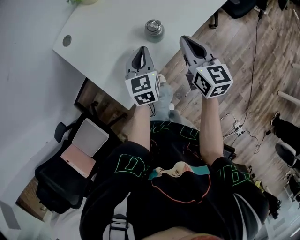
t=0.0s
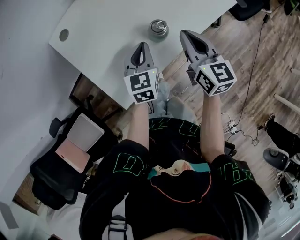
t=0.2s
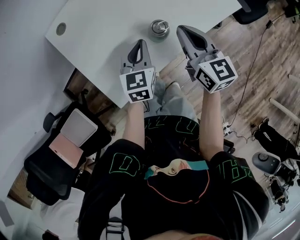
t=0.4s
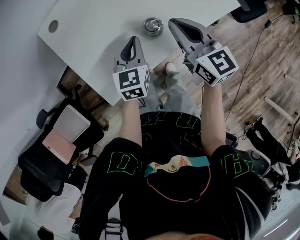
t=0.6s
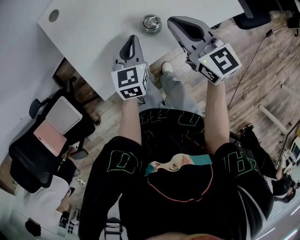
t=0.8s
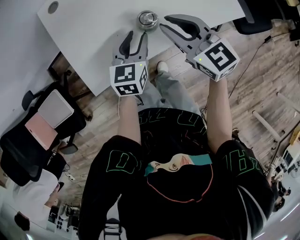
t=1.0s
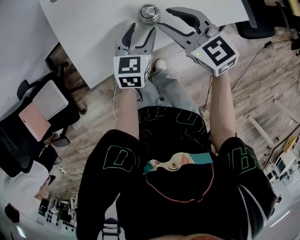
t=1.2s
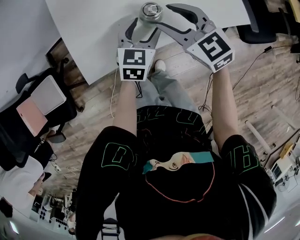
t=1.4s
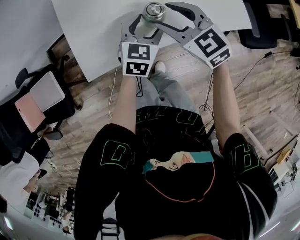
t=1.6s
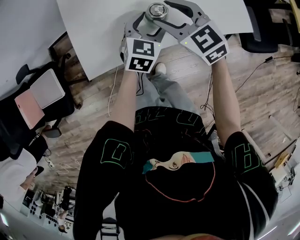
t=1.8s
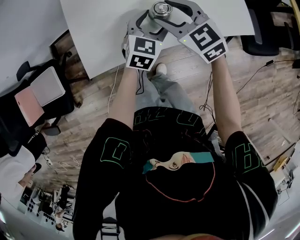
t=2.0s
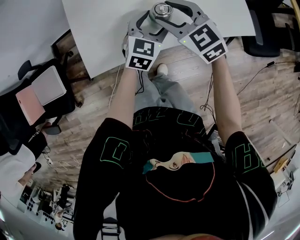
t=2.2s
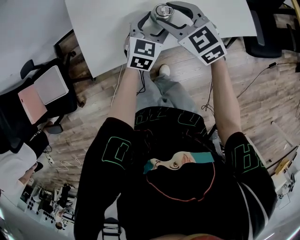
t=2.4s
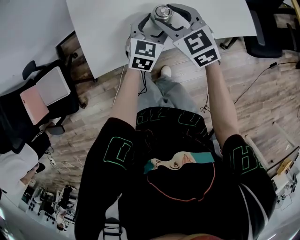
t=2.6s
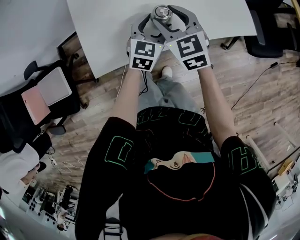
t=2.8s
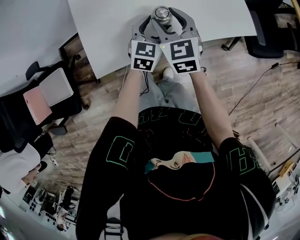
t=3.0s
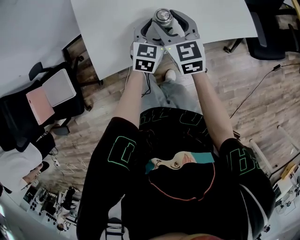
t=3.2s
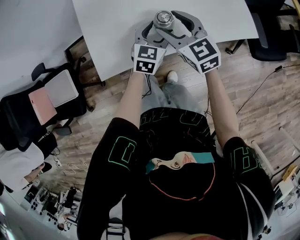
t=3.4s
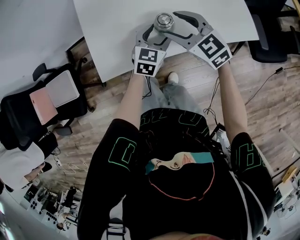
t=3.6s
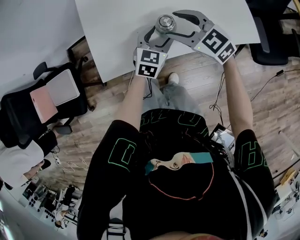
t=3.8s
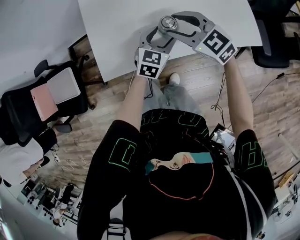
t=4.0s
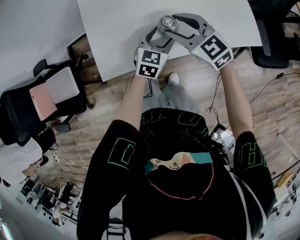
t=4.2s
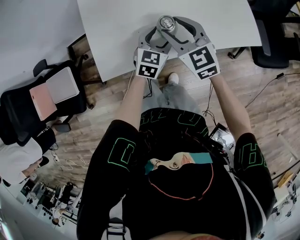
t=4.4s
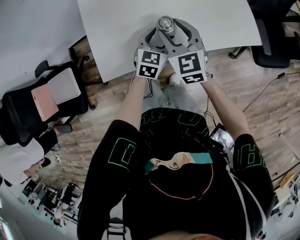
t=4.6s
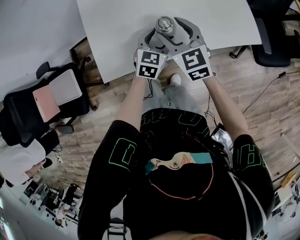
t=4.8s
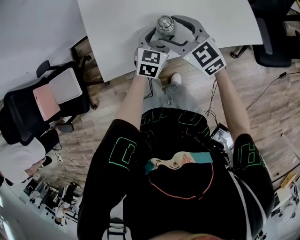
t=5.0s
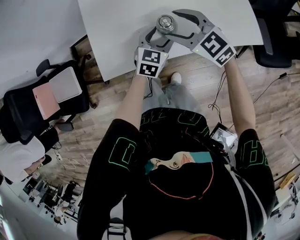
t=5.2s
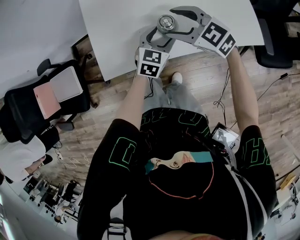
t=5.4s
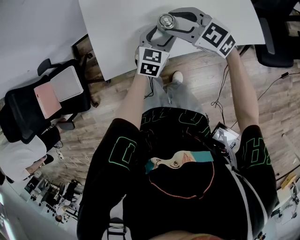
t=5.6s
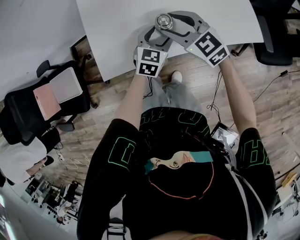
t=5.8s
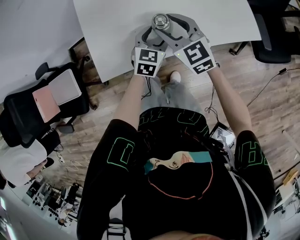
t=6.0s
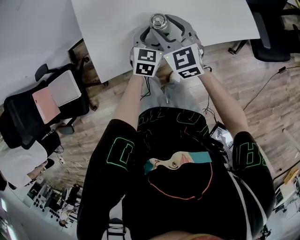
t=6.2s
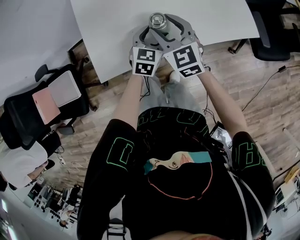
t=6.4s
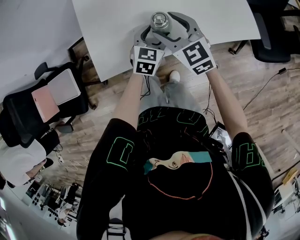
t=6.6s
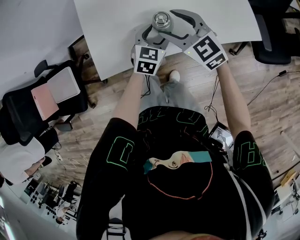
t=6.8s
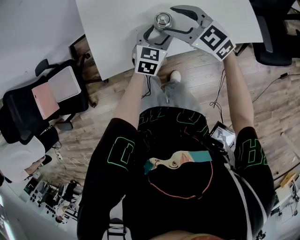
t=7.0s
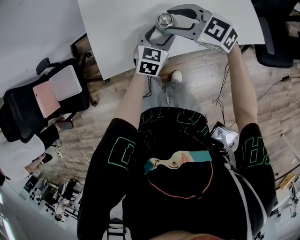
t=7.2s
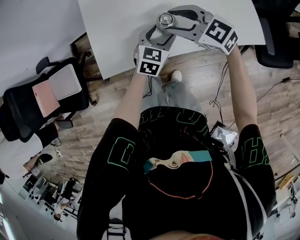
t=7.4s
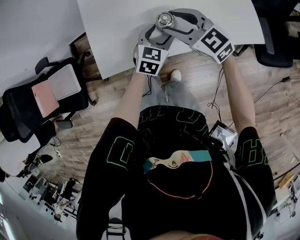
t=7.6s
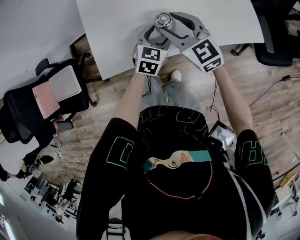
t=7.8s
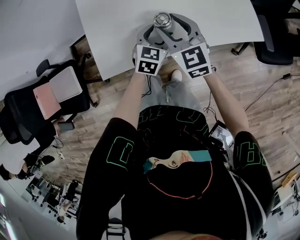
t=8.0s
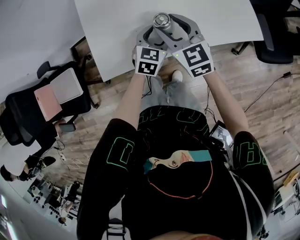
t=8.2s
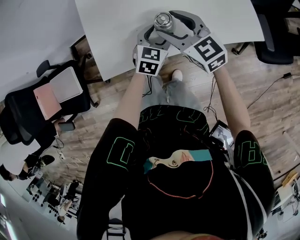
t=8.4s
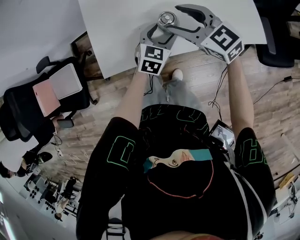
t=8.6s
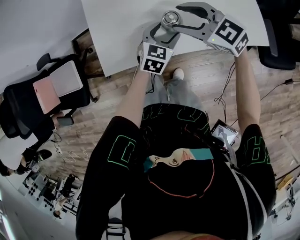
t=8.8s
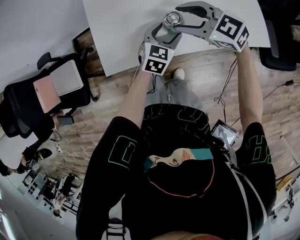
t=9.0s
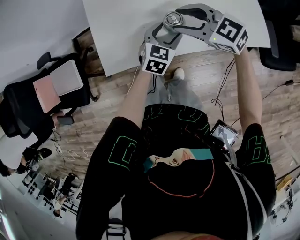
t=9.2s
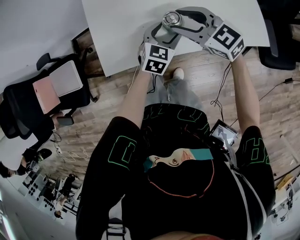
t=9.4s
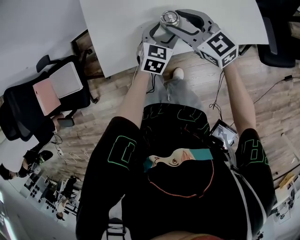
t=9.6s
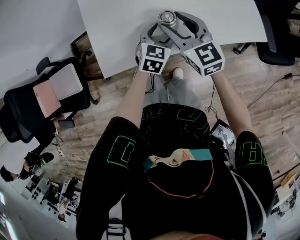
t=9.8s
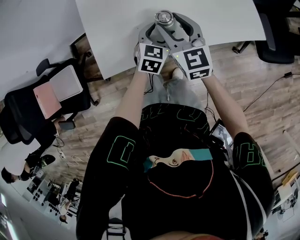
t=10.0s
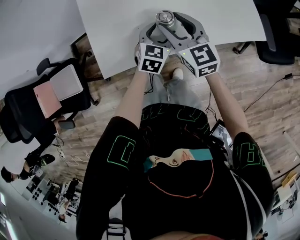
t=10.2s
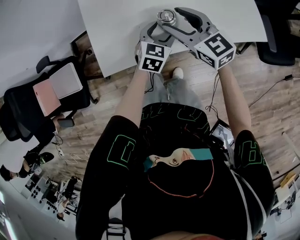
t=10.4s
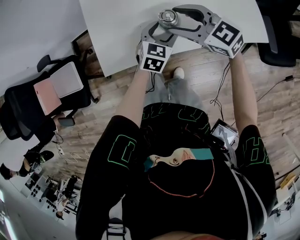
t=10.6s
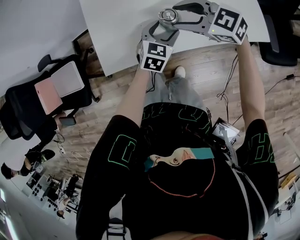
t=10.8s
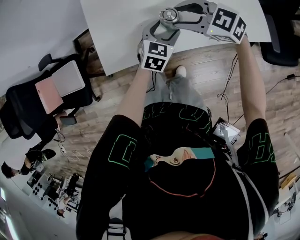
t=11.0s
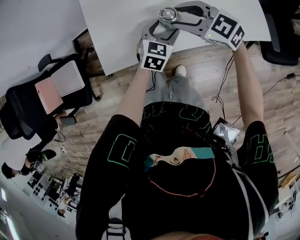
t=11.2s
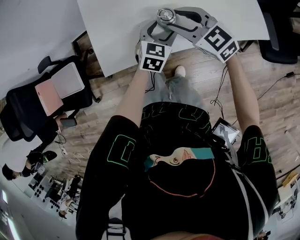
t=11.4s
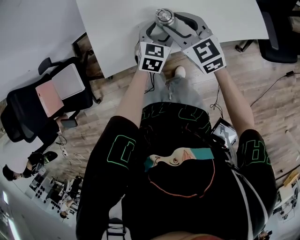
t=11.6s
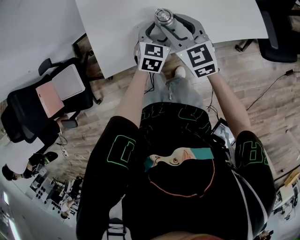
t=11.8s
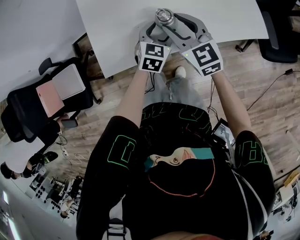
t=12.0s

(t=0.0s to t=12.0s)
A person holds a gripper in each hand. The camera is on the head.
t=0.0s - t=1.6s: The right gripper shifts by about 10 cm, swivels about 70 degrees, and opens its fingers; the left gripper changes place by about 10 cm, and opens.
t=1.6s - t=3.0s: The right gripper turns by about 30 degrees.
t=9.0s - t=10.4s: The right gripper swivels approximately 30 degrees.

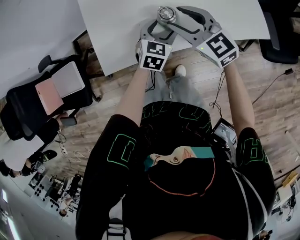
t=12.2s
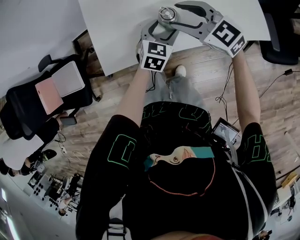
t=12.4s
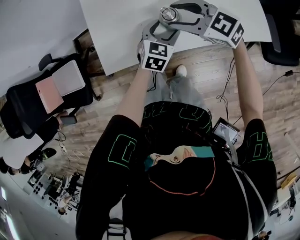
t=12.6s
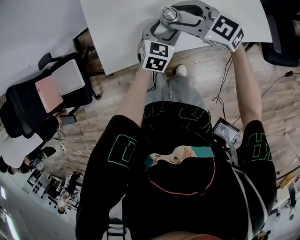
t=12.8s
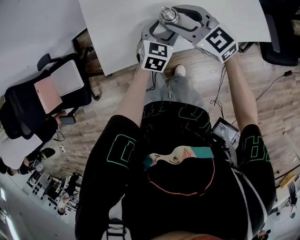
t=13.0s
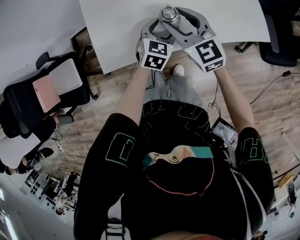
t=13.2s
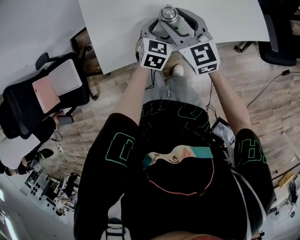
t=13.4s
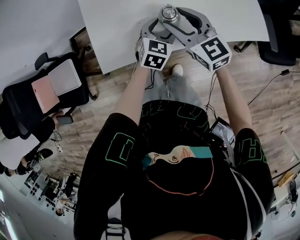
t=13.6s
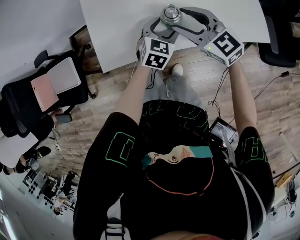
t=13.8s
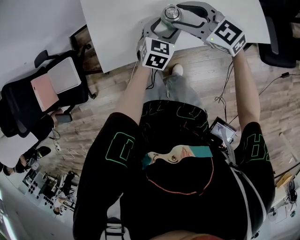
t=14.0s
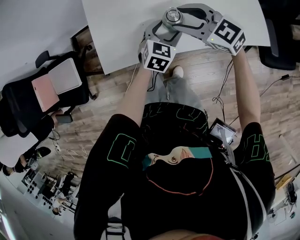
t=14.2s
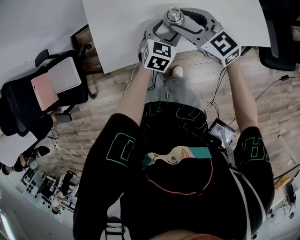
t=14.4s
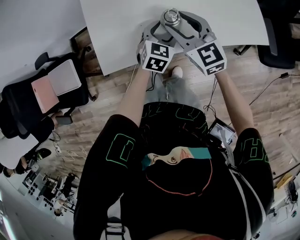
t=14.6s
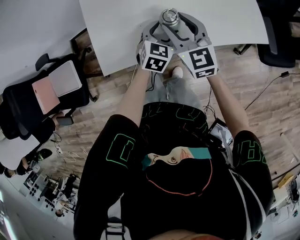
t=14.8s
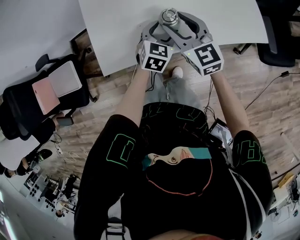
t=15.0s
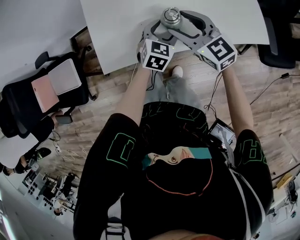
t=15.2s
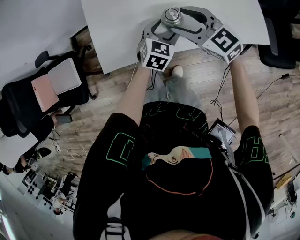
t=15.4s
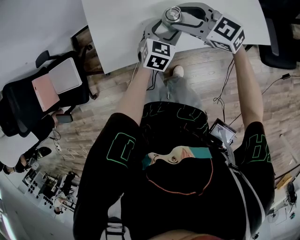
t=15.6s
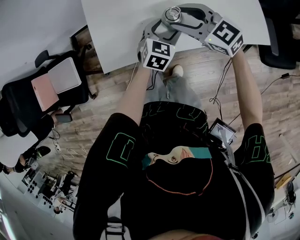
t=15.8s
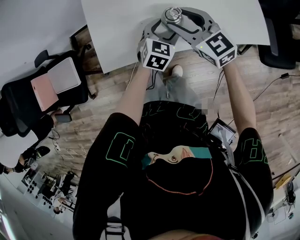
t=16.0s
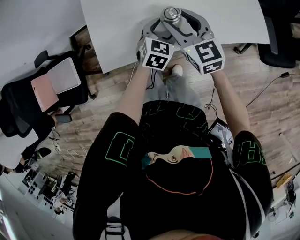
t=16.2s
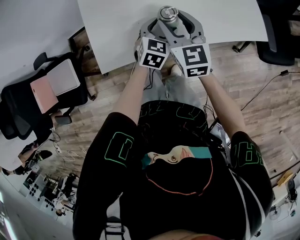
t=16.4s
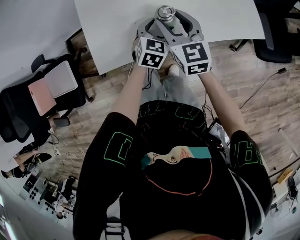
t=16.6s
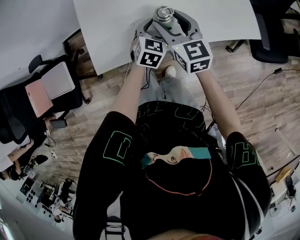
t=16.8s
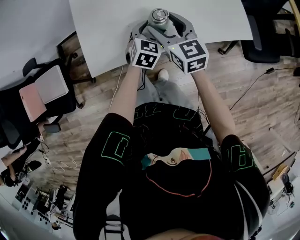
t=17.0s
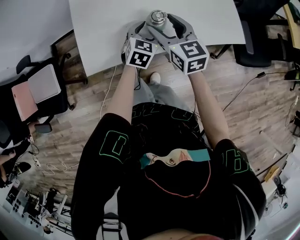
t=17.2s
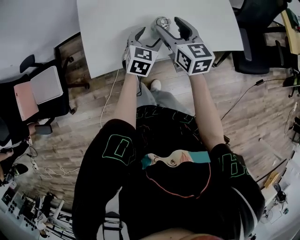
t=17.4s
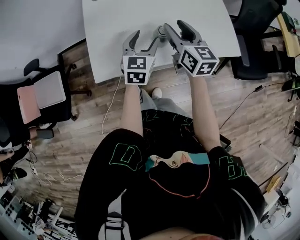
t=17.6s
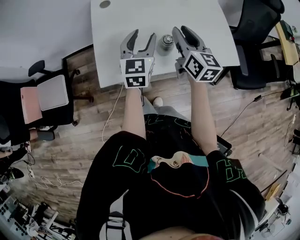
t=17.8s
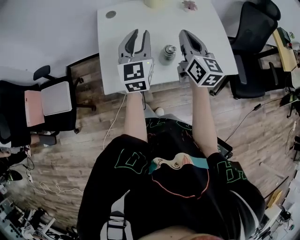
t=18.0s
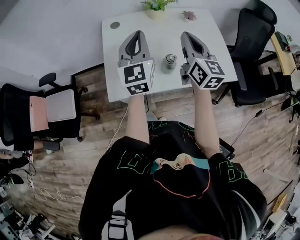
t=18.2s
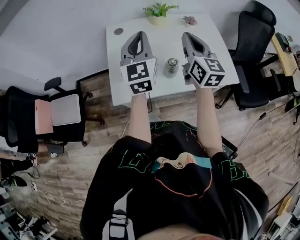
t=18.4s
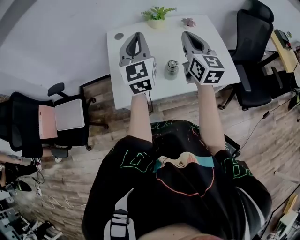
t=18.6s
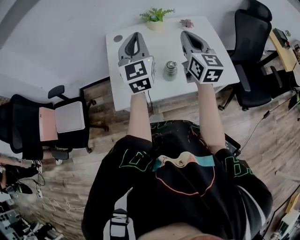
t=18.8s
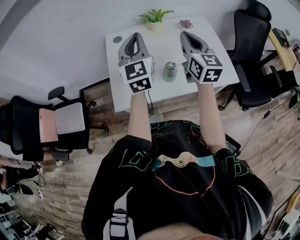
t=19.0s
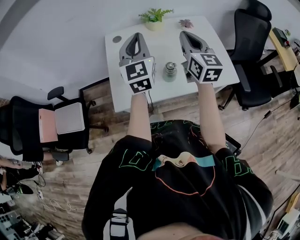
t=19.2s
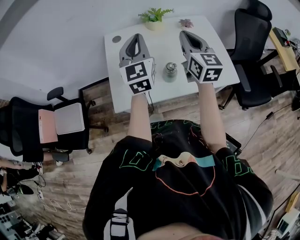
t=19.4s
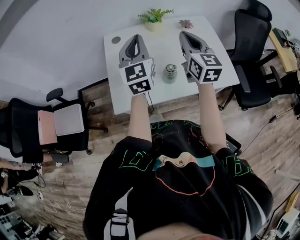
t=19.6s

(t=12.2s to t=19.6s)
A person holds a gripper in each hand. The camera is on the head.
t=15.2s - t=16.6s: The right gripper changes its angle by roughly 30 degrees.
t=16.6s - t=18.2s: The right gripper heads upward, covering some 20 cm, and closes. The left gripper moves upward, approximately 30 cm, tips its fingers upward by approximately 40 degrees, and closes its fingers.
t=18.2s - t=19.6s: The grippers move only a little.

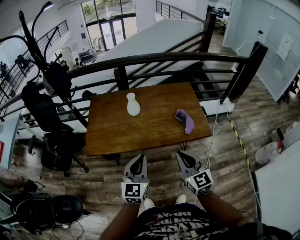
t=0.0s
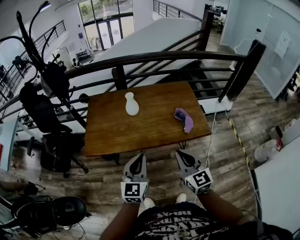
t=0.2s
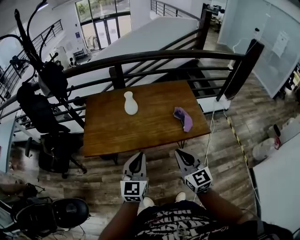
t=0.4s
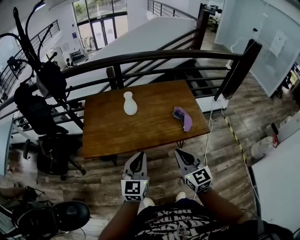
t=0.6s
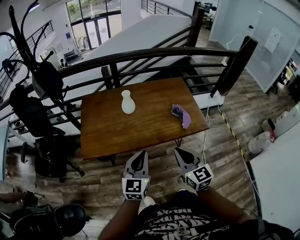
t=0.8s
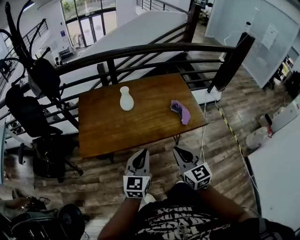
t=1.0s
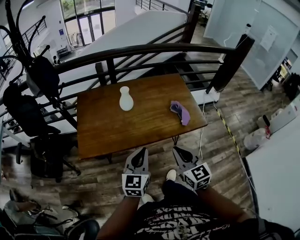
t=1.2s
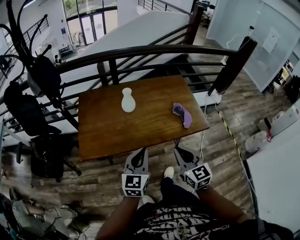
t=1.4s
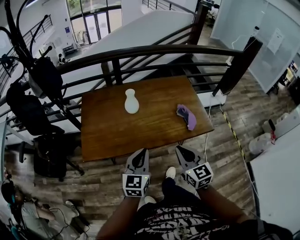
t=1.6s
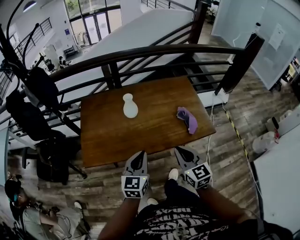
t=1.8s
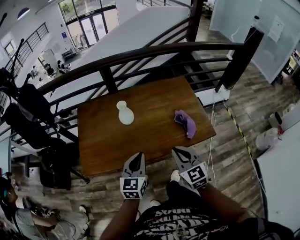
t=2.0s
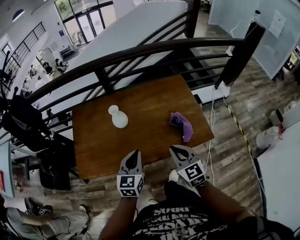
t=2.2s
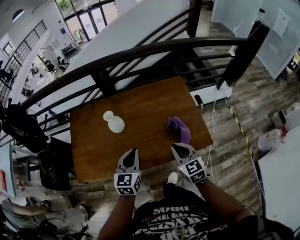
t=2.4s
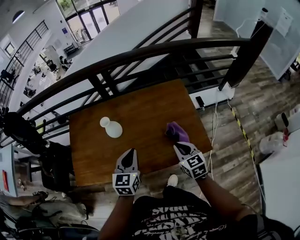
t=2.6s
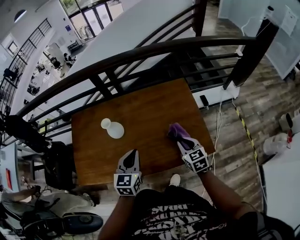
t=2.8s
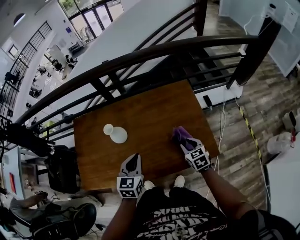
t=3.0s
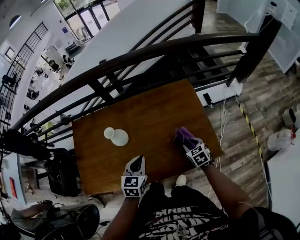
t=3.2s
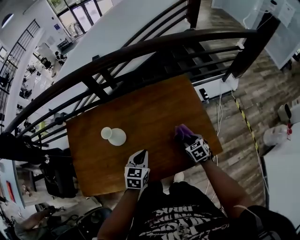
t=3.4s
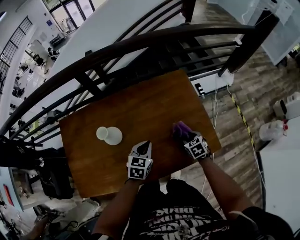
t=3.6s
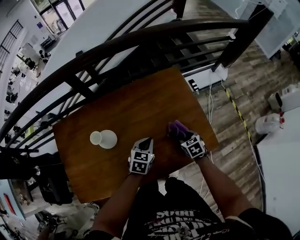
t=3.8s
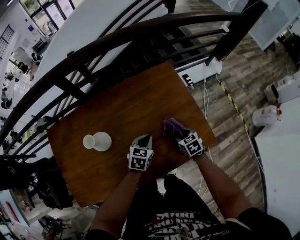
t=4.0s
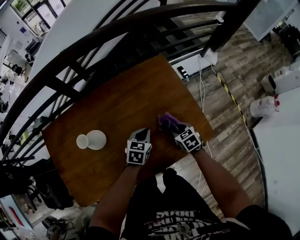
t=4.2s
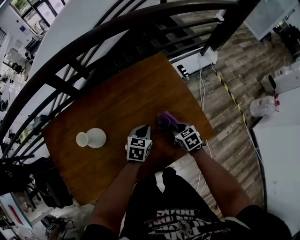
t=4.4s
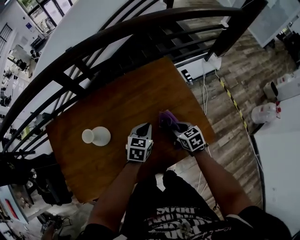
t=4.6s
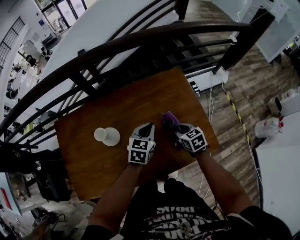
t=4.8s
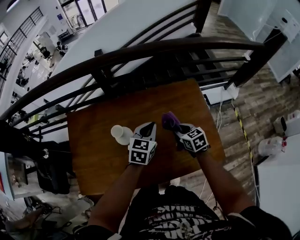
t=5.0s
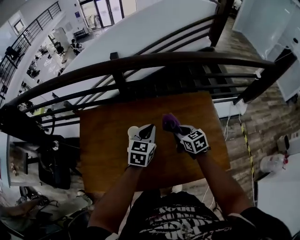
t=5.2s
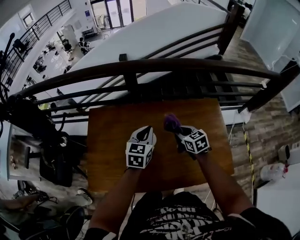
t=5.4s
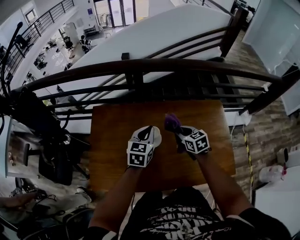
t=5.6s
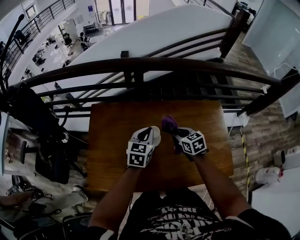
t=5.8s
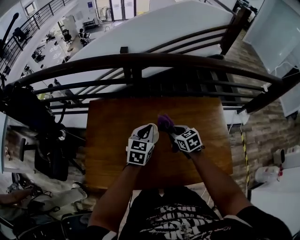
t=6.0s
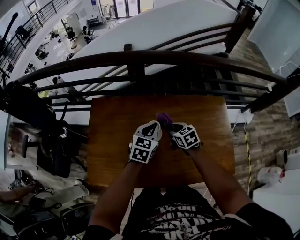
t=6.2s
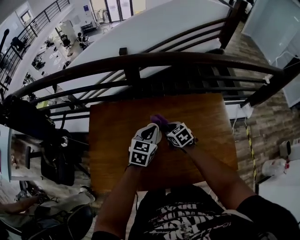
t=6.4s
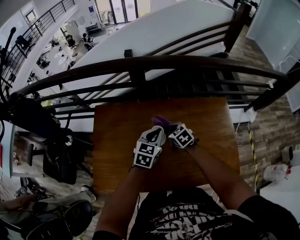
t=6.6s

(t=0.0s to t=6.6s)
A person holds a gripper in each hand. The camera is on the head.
t=0.0s - t=1.6s: The left gripper shifts about 5 cm forward. The right gripper moves forward and to the left, some 10 cm.
t=1.6s - t=3.2s: The left gripper heads forward, to the right and downward, covering approximately 30 cm, and changes its angle by roughly 20 degrees, while the right gripper heads forward, downward and to the right, covering some 40 cm, tips its fingers downward by approximately 40 degrees, and opens up.
t=3.2s - t=5.0s: The left gripper heads forward, covering approximately 15 cm. The right gripper travels to the left, forward and upward by about 15 cm.
t=5.0s - t=6.6s: The two grippers go approximately 20 cm to the left. The right gripper rotates about 30 degrees.
